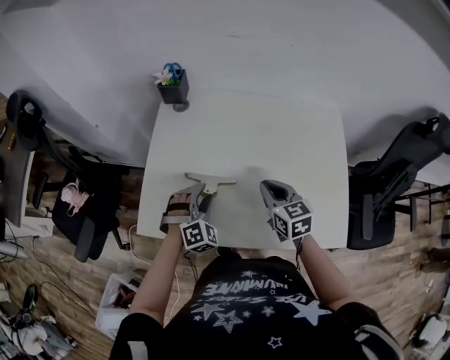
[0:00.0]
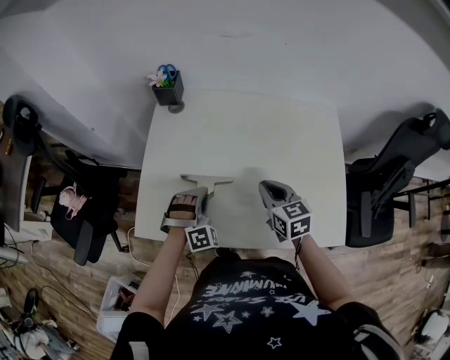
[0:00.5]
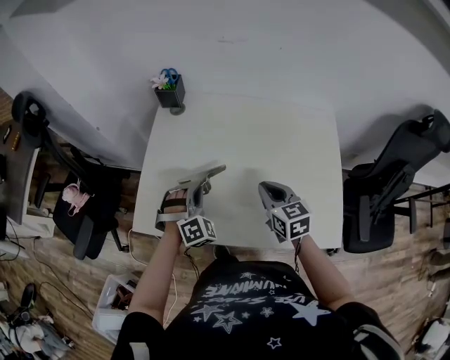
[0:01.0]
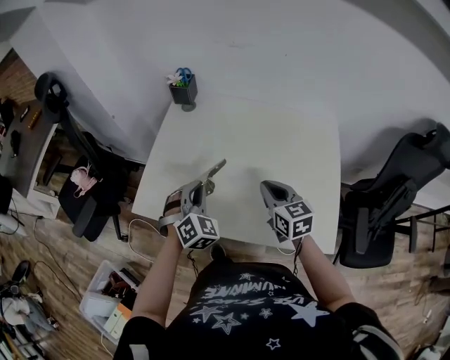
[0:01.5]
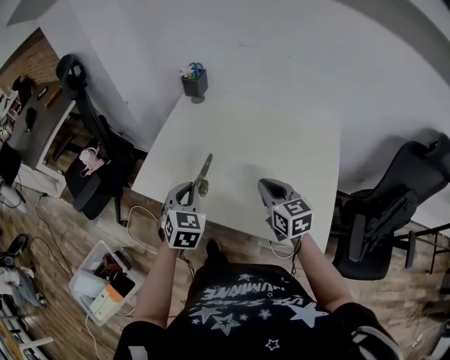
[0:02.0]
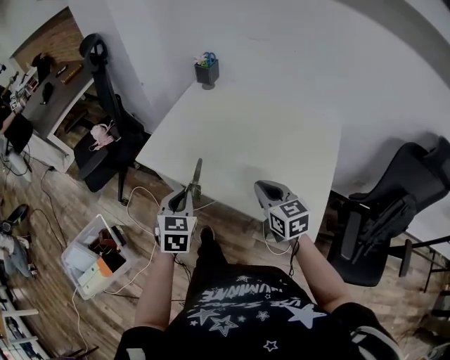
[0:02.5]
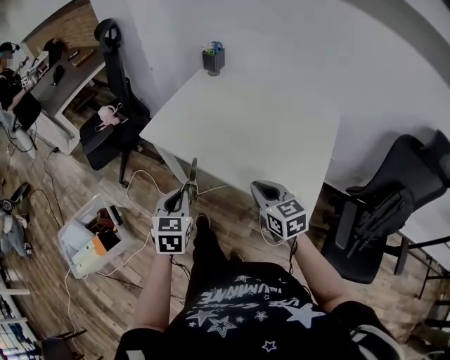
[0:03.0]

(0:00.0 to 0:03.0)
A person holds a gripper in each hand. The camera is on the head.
0:00.0 - 0:01.5: The left gripper heads upward and backward, covering approximately 10 cm, swivels some 20 degrees, and closes its fingers. Meanwhile the right gripper is displaced backward by roughly 5 cm.
0:01.5 - 0:03.0: Both grippers travel together backward, some 30 cm. The right gripper changes its angle by about 20 degrees. The left gripper rolls counterclockwise, seen from behind, by approximately 50 degrees.

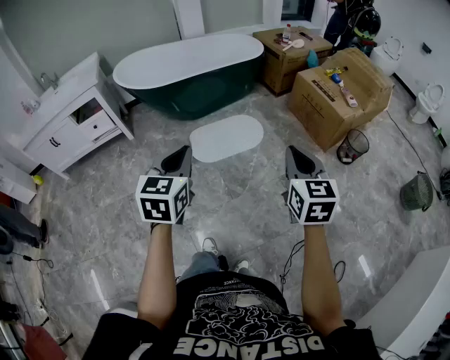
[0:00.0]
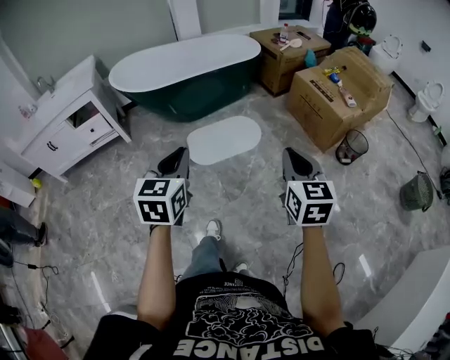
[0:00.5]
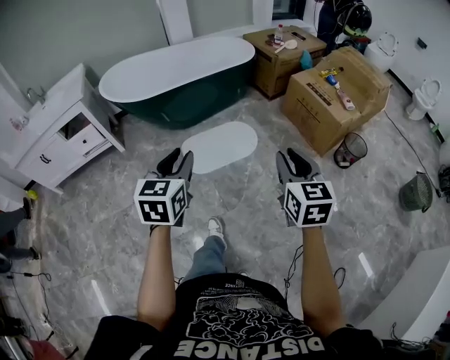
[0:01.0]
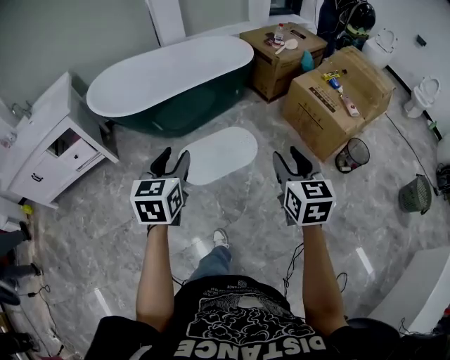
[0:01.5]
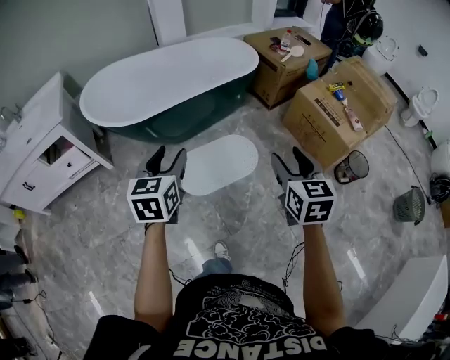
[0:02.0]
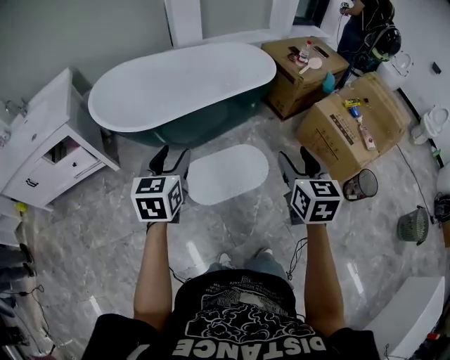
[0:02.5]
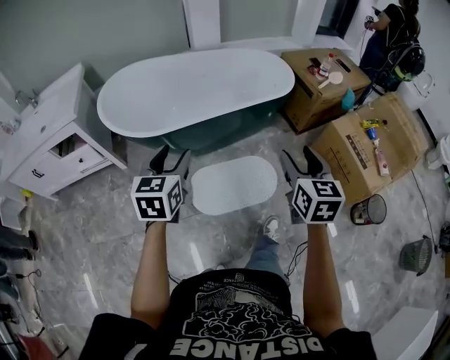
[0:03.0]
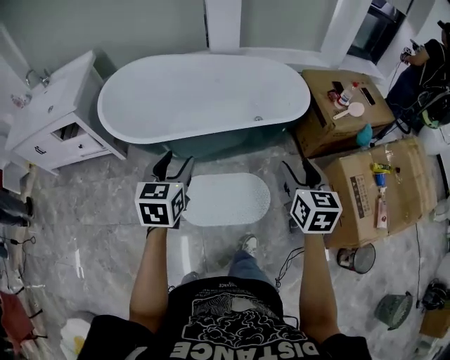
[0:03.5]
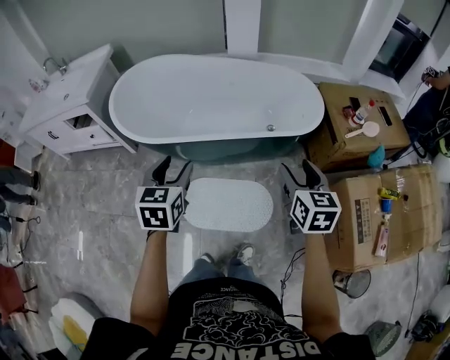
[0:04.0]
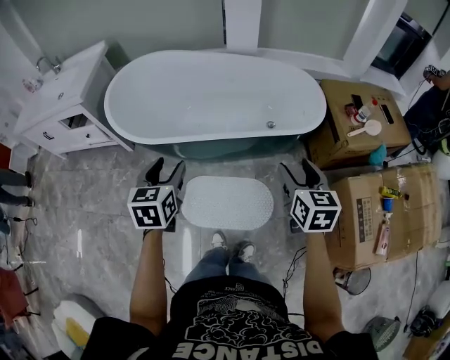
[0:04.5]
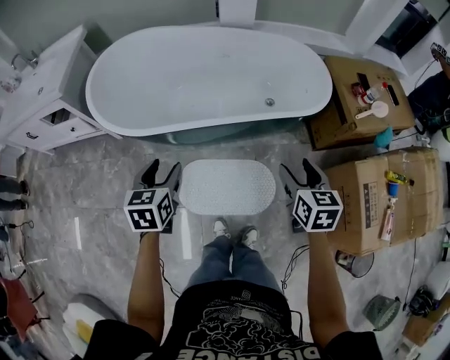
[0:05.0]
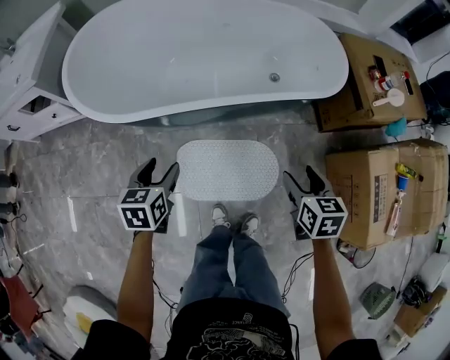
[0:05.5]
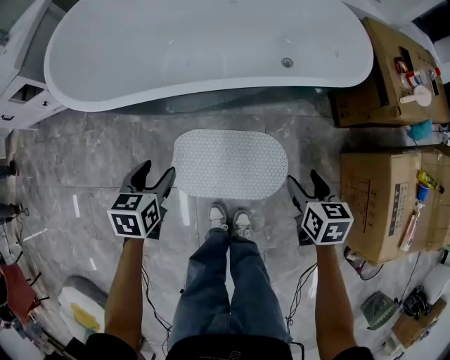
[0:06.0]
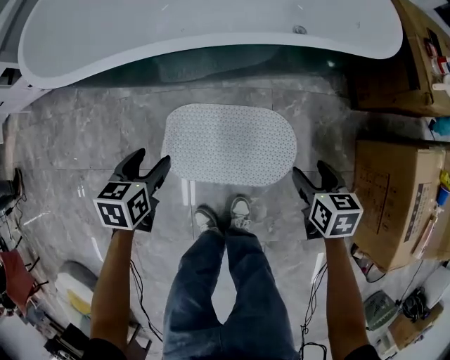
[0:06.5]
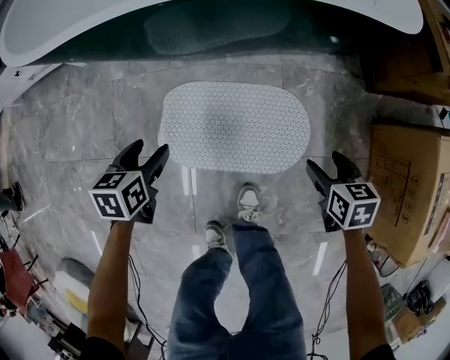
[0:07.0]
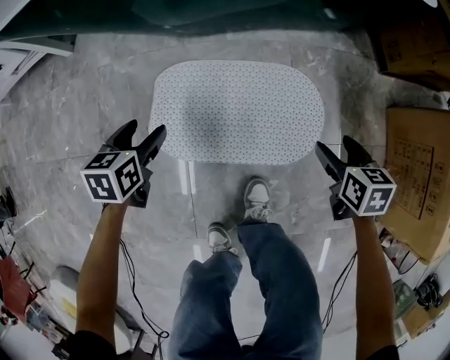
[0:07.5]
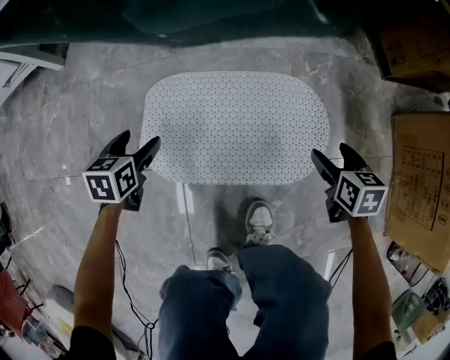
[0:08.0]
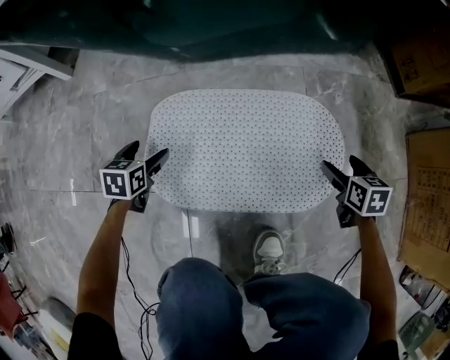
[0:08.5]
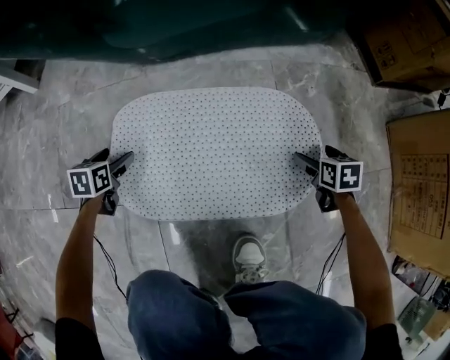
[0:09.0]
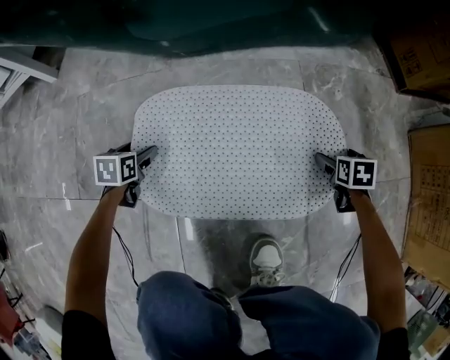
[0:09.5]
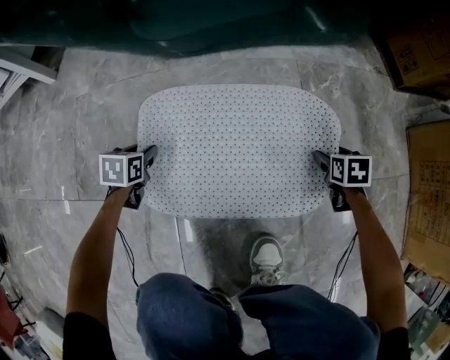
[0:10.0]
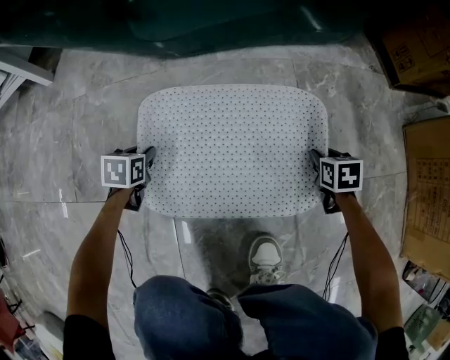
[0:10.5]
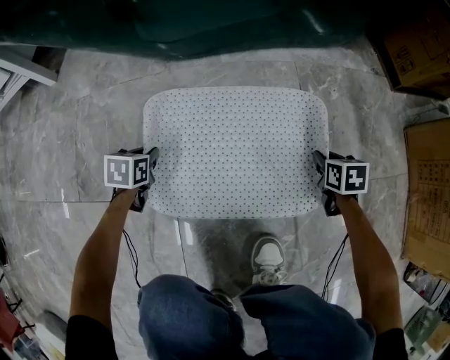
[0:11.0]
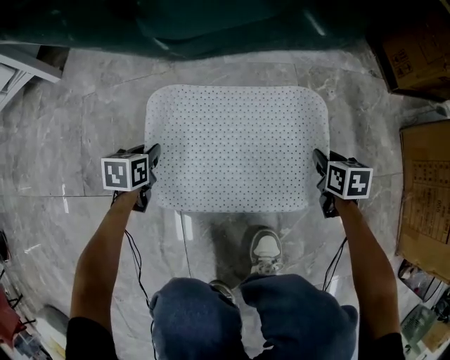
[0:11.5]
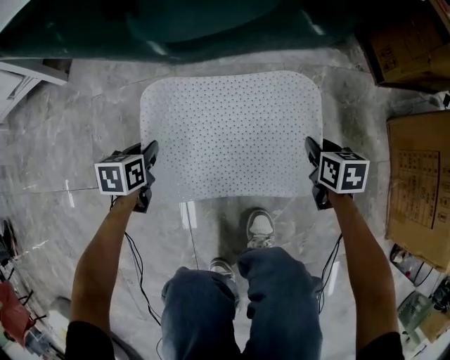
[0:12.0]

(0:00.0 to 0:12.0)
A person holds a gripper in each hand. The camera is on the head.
0:00.0 - 0:02.0: Both grippers travel together forward, approximately 35 cm. The left gripper opens up, while the right gripper opens up.
0:02.0 - 0:04.0: The right gripper shifts by some 40 cm, and turns by approximately 30 degrees; the left gripper shifts by about 30 cm, and changes its angle by roughly 30 degrees.
0:04.0 - 0:06.0: Both grippers travel together downward, some 35 cm. The right gripper rotates roughly 30 degrees, while the left gripper rotates about 20 degrees.
0:06.0 - 0:08.0: Both grippers move downward, roughly 40 cm.
0:08.0 - 0:10.0: Both grippers move downward, about 20 cm. The left gripper closes up.
0:10.0 - 0:12.0: The right gripper heads upward and to the left, covering approximately 20 cm, and closes. The left gripper heads upward, covering some 15 cm.

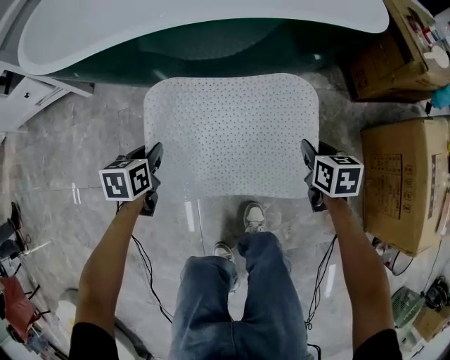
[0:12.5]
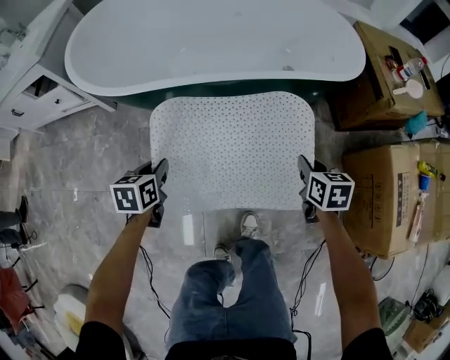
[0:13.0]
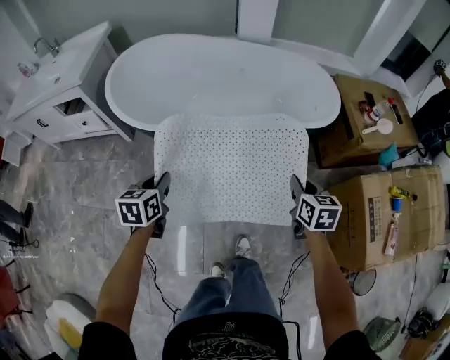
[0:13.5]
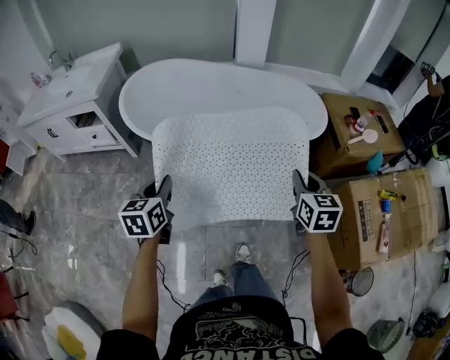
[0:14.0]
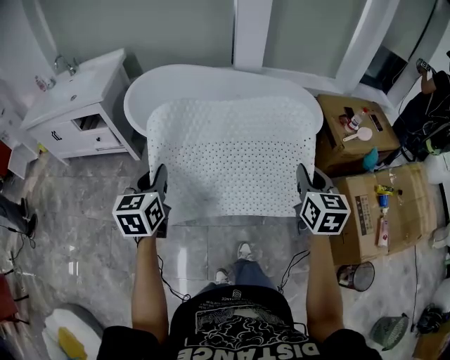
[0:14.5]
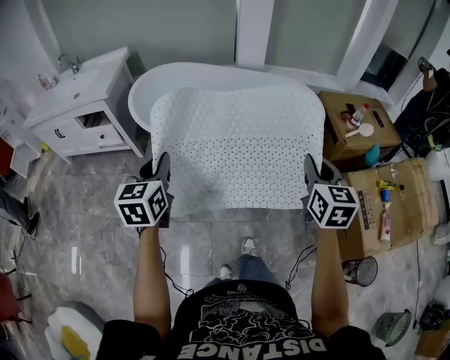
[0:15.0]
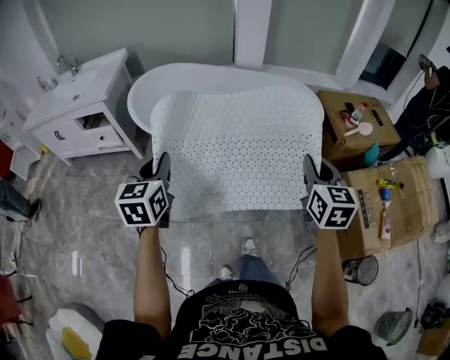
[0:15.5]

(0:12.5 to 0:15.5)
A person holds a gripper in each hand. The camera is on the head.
0:12.5 - 0:14.0: The grippers both shift upward by roughly 50 cm. The right gripper turns by about 30 degrees. Meanwhile the left gripper changes its angle by roughly 30 degrees.
0:14.0 - 0:15.5: The right gripper goes some 15 cm upward and backward. Meanwhile the left gripper moves upward, about 10 cm.

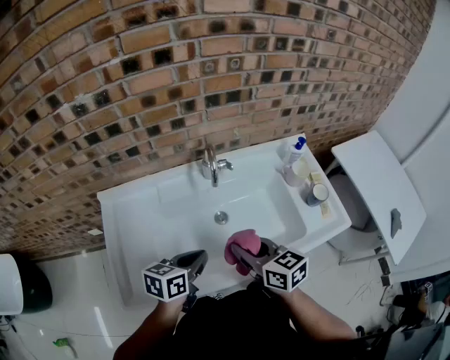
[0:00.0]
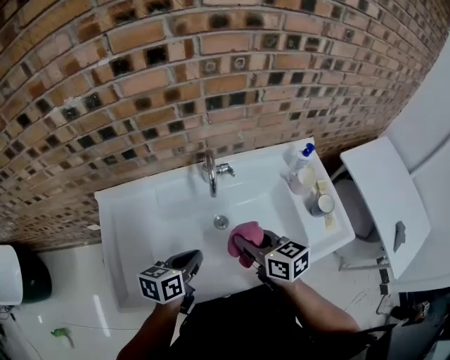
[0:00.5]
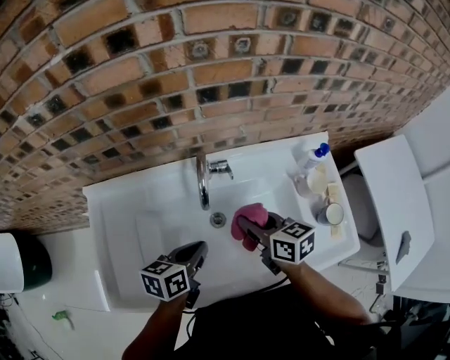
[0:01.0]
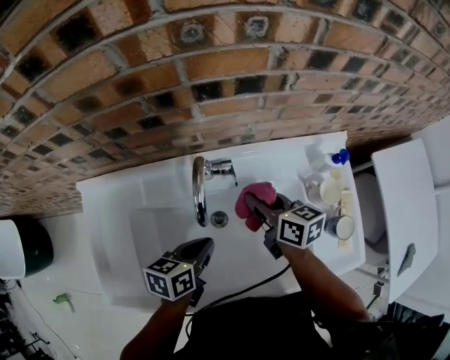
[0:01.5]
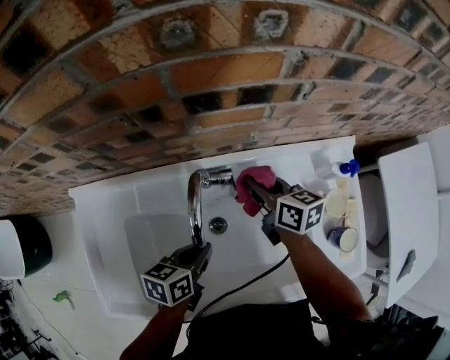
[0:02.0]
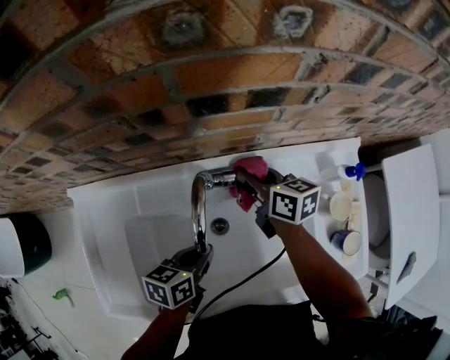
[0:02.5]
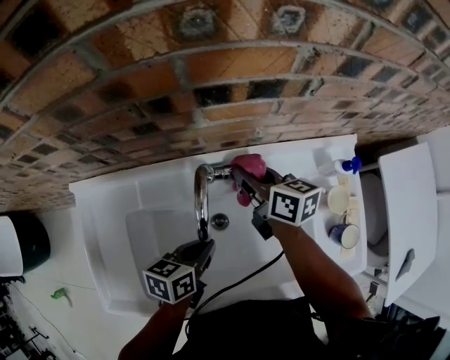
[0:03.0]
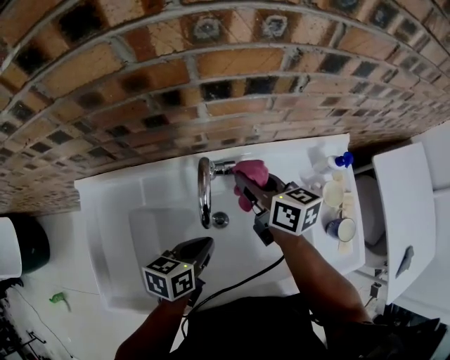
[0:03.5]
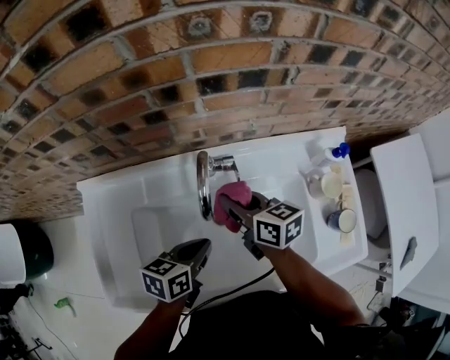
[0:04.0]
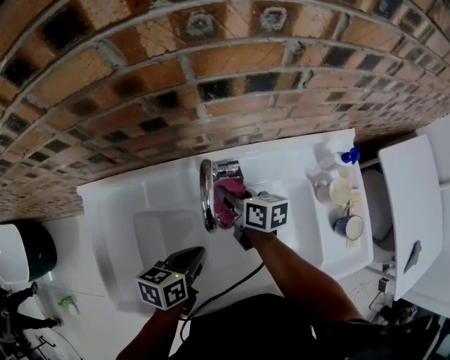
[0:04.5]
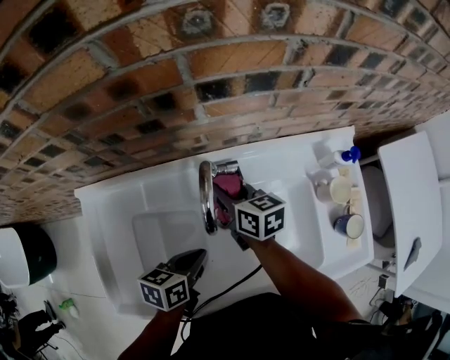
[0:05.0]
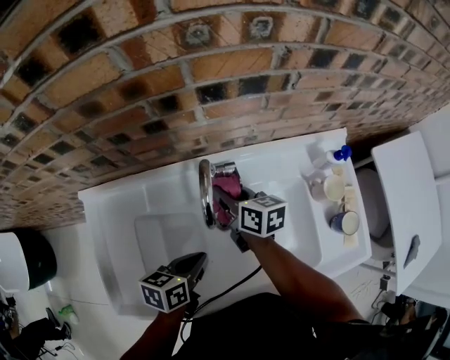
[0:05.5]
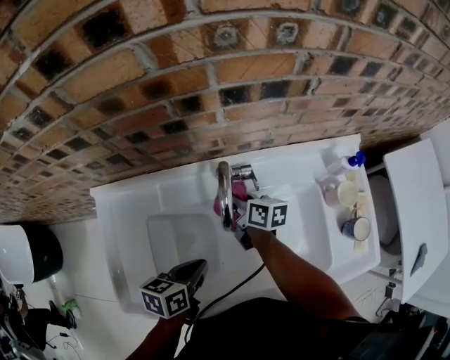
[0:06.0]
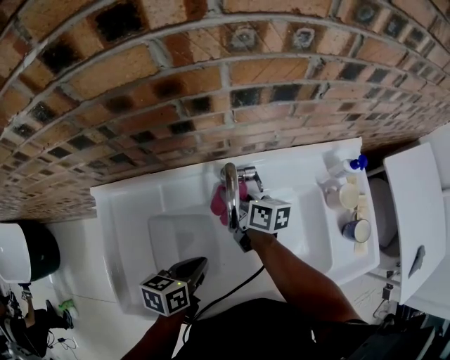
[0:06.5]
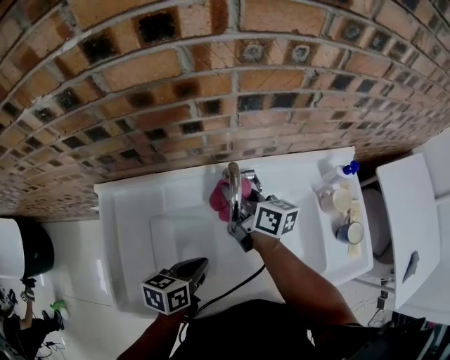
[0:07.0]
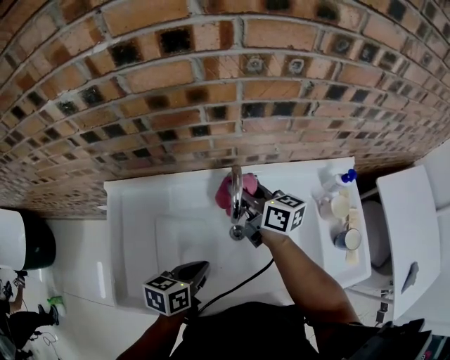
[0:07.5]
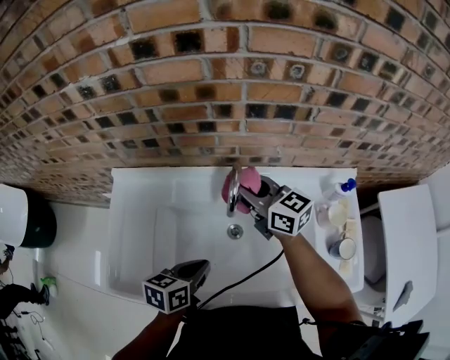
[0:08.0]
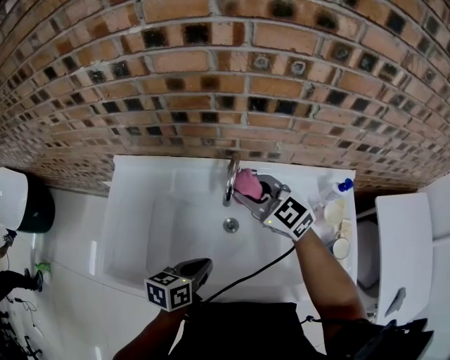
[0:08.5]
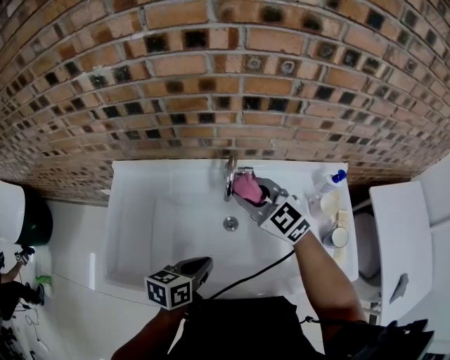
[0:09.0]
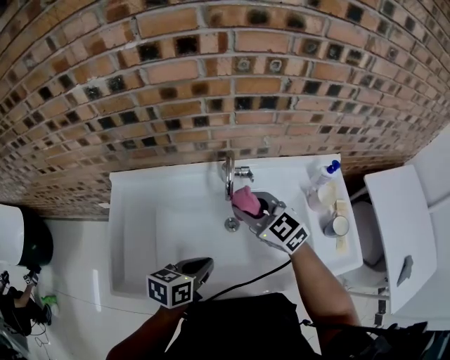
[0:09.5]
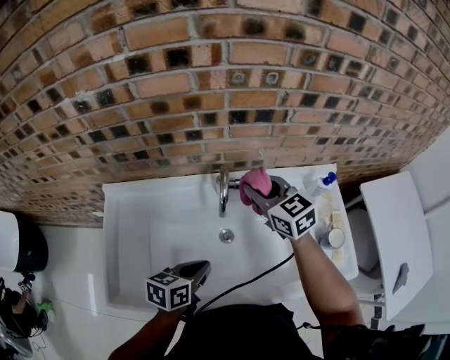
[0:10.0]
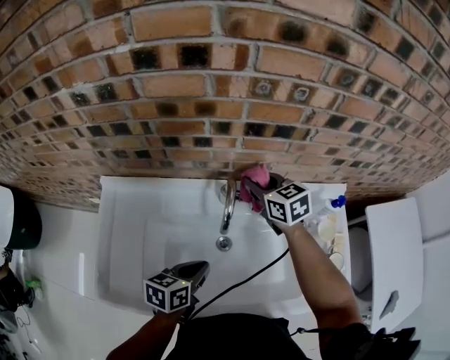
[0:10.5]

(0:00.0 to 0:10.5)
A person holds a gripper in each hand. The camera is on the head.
0:00.0 - 0:02.0: The right gripper heads forward, covering some 35 cm, while the left gripper heads forward and downward, covering roughly 20 cm.
0:02.0 - 0:04.0: The right gripper shifts about 10 cm backward and to the left.
0:04.0 - 0:06.5: The left gripper heads to the left, covering roughly 5 cm, while the right gripper moves up and down over about 10 cm, changing direction 2 times.
0:06.5 - 0:08.5: The right gripper travels upward and backward by some 20 cm, and rotates around the line of its fingers by roughly 70 degrees, counterclockwise from behind, while the left gripper heads backward and to the right, covering roughly 10 cm.
0:08.5 - 0:10.5: The right gripper is displaced forward by some 10 cm, and changes its angle by roughly 30 degrees. The left gripper heads forward, covering roughly 5 cm.
